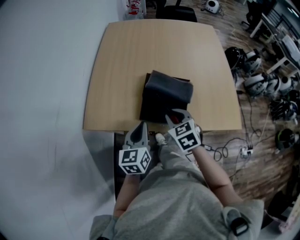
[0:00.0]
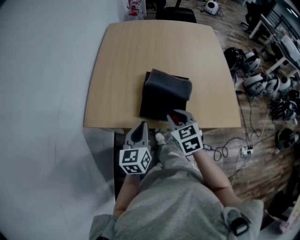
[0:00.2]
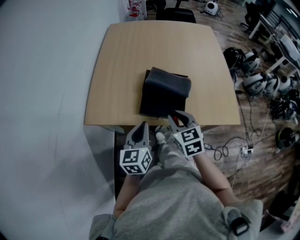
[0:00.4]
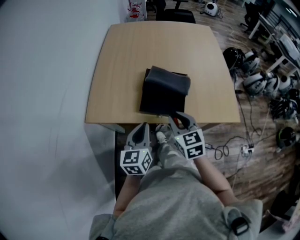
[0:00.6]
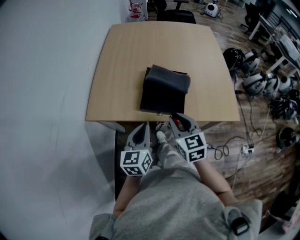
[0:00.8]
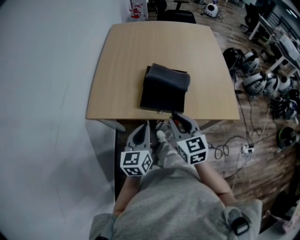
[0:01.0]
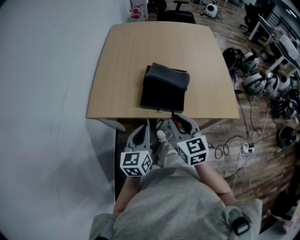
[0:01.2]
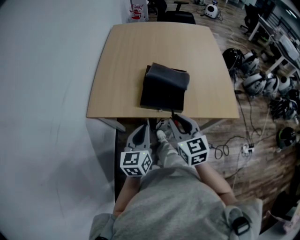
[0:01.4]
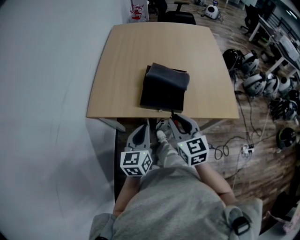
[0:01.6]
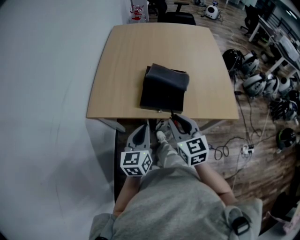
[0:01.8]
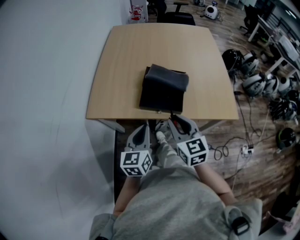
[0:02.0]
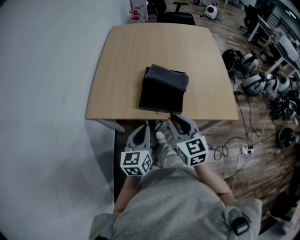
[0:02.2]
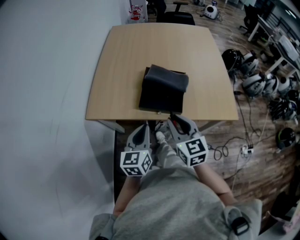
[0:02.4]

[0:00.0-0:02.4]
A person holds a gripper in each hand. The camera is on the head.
0:00.0 to 0:01.2: The left gripper heads backward, covering some 10 cm. Meanwhile the right gripper travels backward and upward by some 15 cm, and changes its angle by about 20 degrees.
0:01.2 to 0:02.4: The two grippers keep their place.

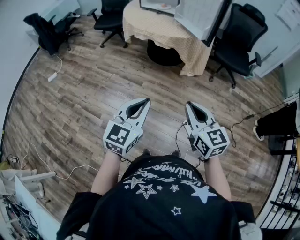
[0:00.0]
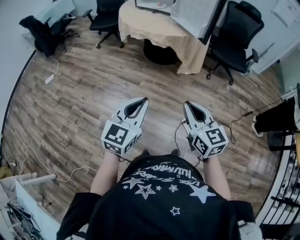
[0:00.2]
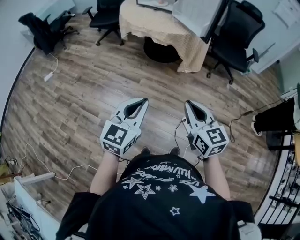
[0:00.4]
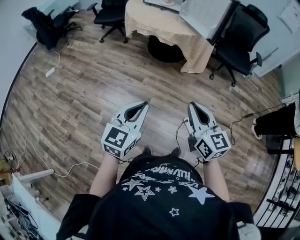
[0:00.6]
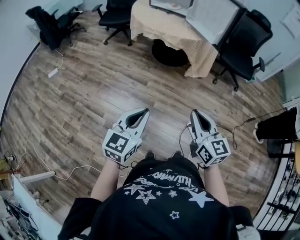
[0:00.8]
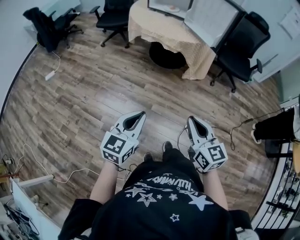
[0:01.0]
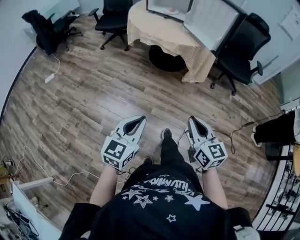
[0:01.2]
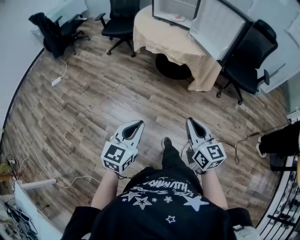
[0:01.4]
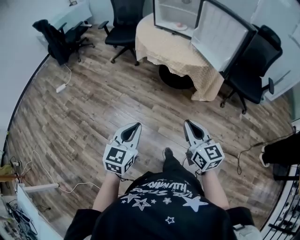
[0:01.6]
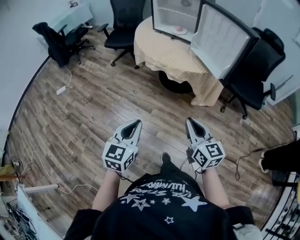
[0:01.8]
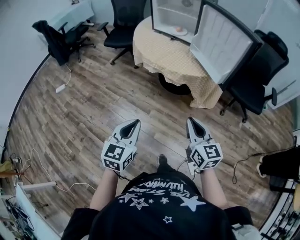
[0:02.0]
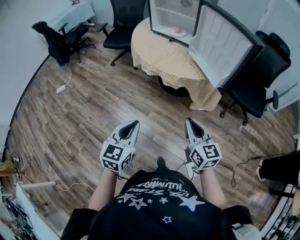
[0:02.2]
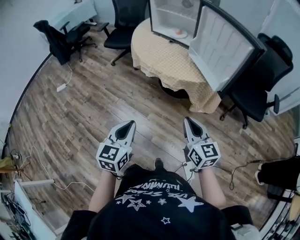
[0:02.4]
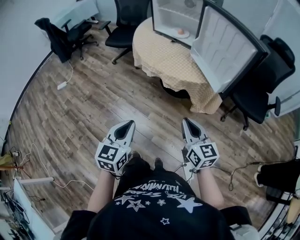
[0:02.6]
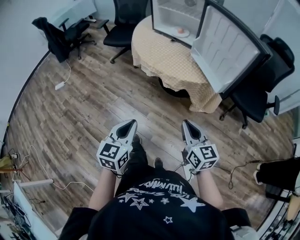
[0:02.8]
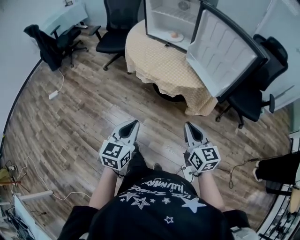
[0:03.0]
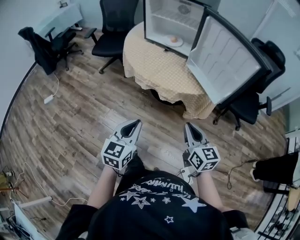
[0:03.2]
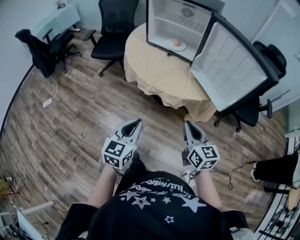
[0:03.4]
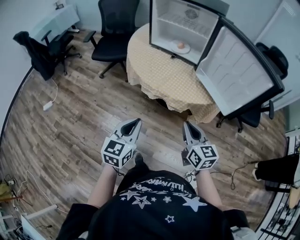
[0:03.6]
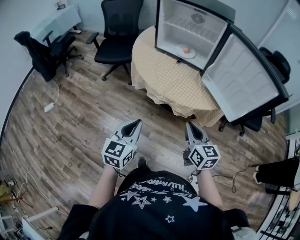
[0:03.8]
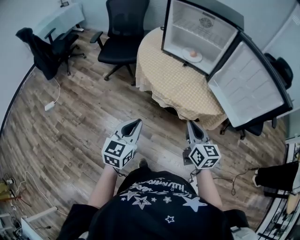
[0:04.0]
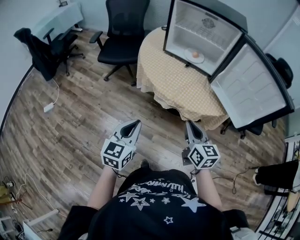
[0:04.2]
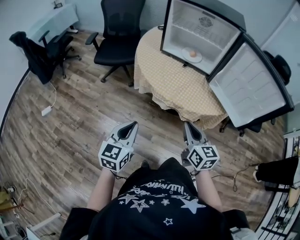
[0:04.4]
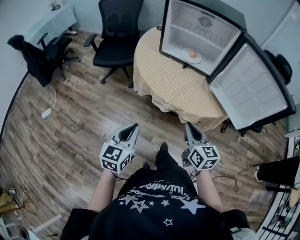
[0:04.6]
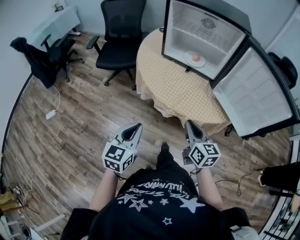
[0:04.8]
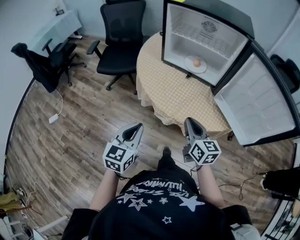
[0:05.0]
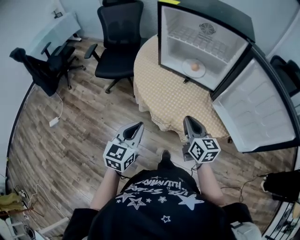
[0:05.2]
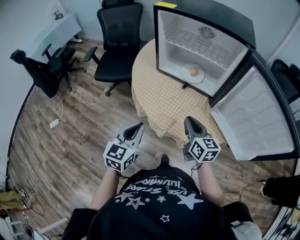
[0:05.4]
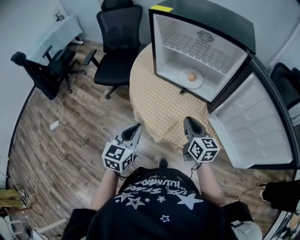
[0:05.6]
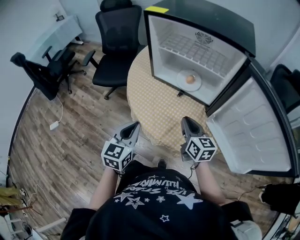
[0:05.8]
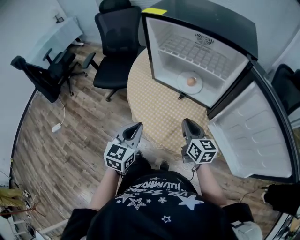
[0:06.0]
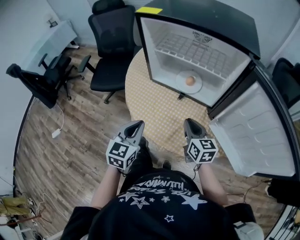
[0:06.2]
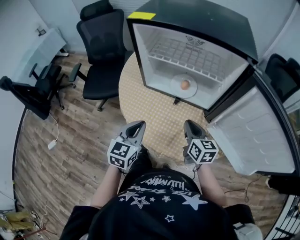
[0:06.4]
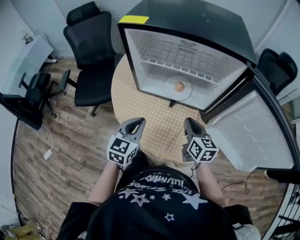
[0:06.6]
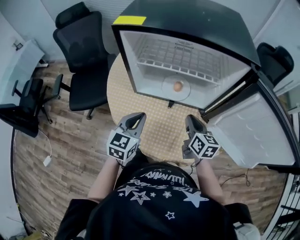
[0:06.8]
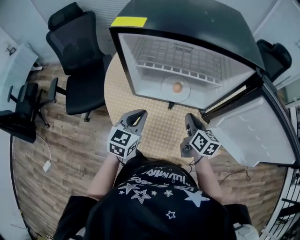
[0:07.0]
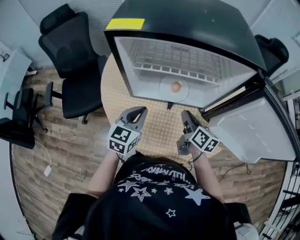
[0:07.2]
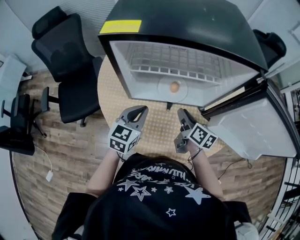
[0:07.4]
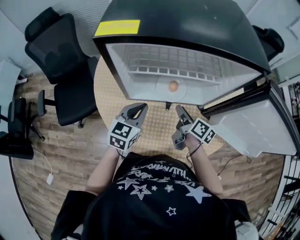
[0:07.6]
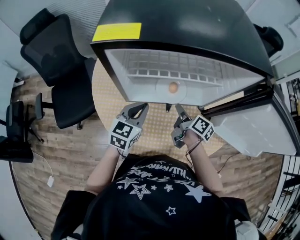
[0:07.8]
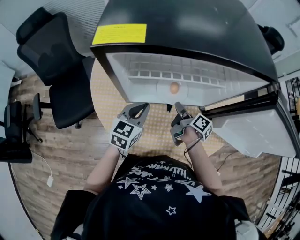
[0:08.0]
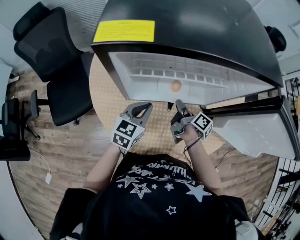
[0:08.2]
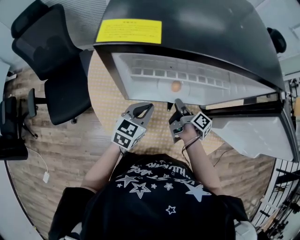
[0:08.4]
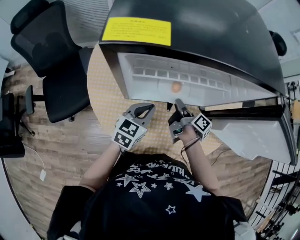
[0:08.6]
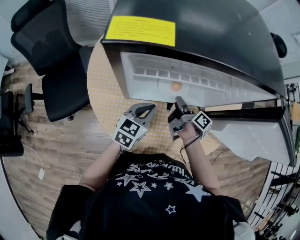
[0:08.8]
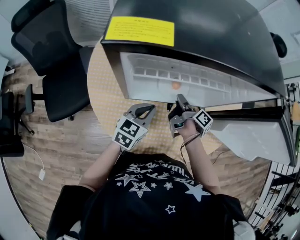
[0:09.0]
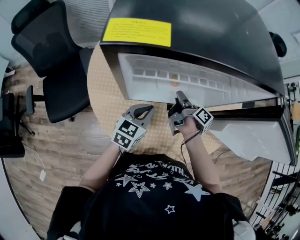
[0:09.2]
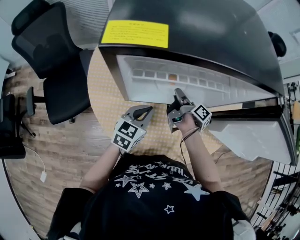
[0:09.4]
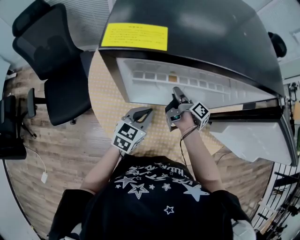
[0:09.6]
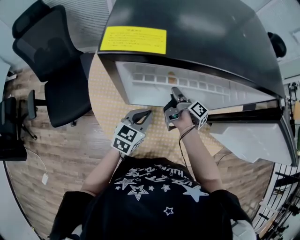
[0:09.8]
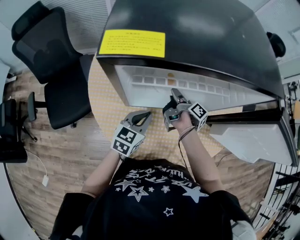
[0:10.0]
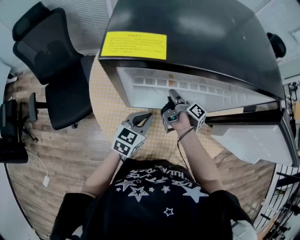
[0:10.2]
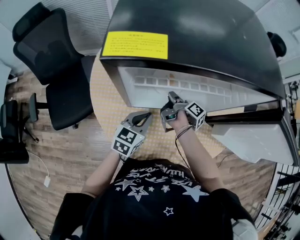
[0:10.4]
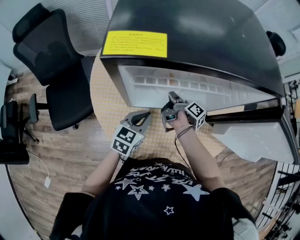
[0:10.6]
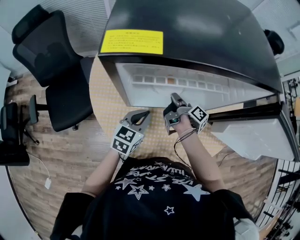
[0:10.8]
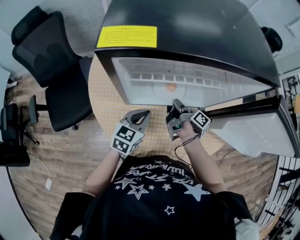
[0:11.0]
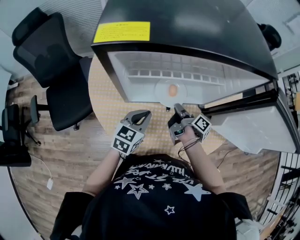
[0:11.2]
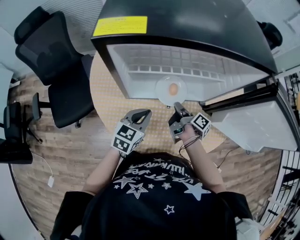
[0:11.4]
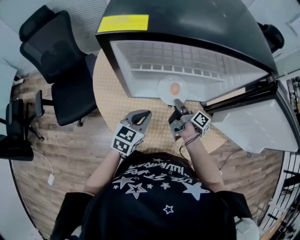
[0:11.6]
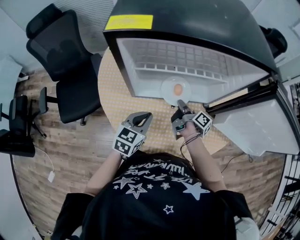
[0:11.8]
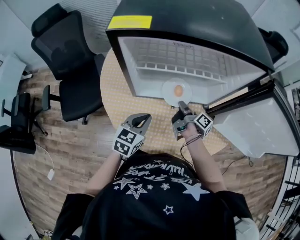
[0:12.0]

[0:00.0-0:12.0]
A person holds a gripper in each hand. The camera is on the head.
0:00.0 to 0:01.6: The two grippers go some 15 cm forward and to the left.
0:01.6 to 0:03.0: The left gripper travels forward by roughly 20 cm. The right gripper heads forward and to the right, covering about 20 cm.
0:03.0 to 0:04.4: The two grippers go some 25 cm to the left and forward.
0:04.4 to 0:06.0: The two grippers go approximately 25 cm forward.
0:06.0 to 0:07.6: The left gripper shifts by roughly 25 cm, and swivels roughly 30 degrees. Meanwhile the right gripper ends up roughly 15 cm from where it was, rotates around the line of its fingers by about 40 degrees, clockwise from behind, and opens up.
0:07.6 to 0:09.0: The left gripper is displaced downward by about 5 cm; the right gripper goes some 5 cm forward, and rotates roughly 30 degrees.
0:09.0 to 0:10.4: The right gripper heads to the left, covering roughly 5 cm.
0:10.4 to 0:12.0: The left gripper is displaced backward by about 5 cm. Meanwhile the right gripper is displaced backward and to the right by some 10 cm.

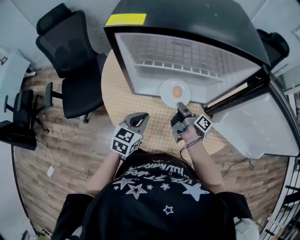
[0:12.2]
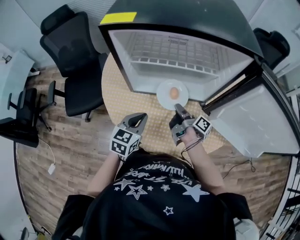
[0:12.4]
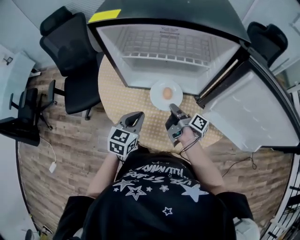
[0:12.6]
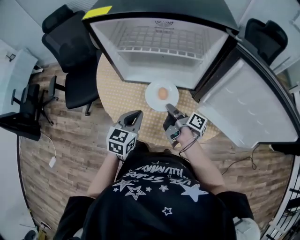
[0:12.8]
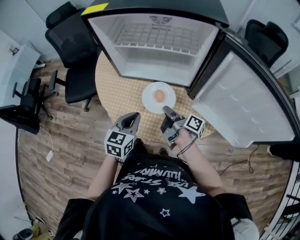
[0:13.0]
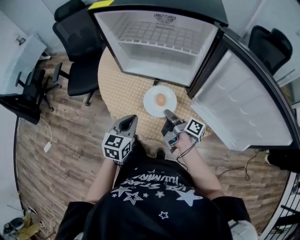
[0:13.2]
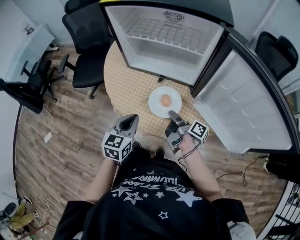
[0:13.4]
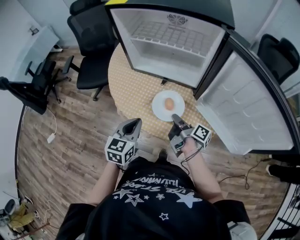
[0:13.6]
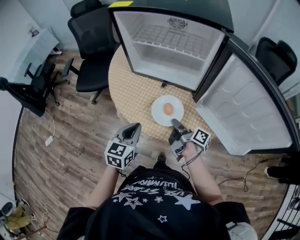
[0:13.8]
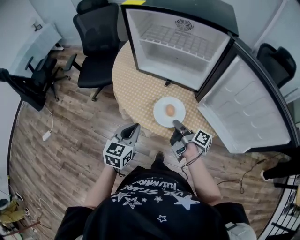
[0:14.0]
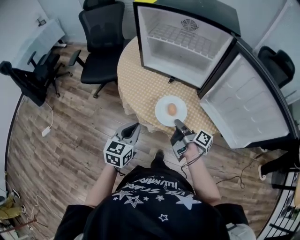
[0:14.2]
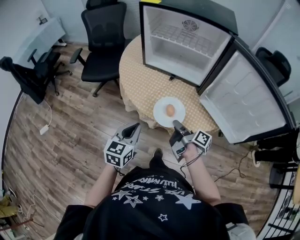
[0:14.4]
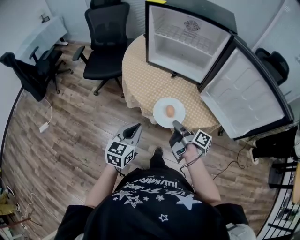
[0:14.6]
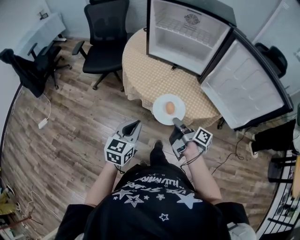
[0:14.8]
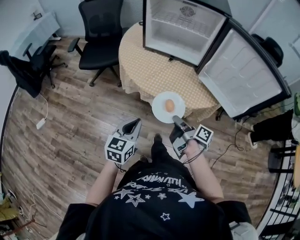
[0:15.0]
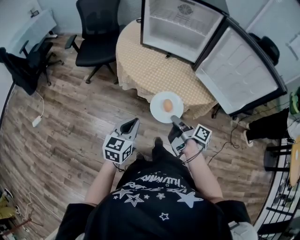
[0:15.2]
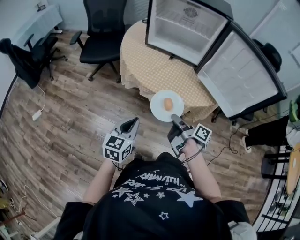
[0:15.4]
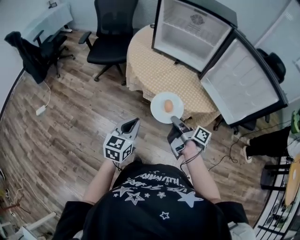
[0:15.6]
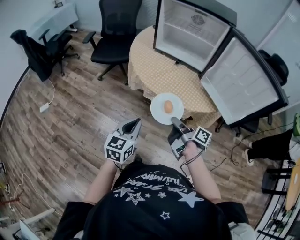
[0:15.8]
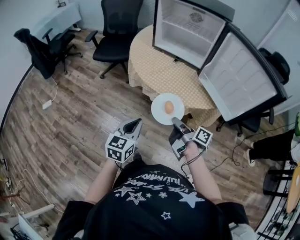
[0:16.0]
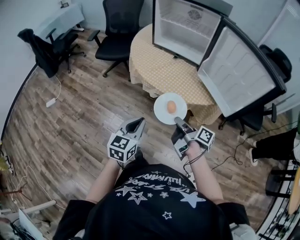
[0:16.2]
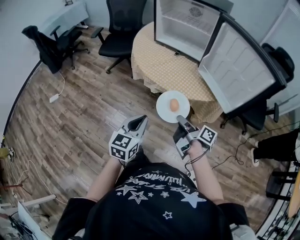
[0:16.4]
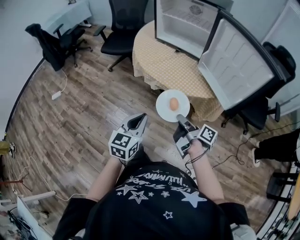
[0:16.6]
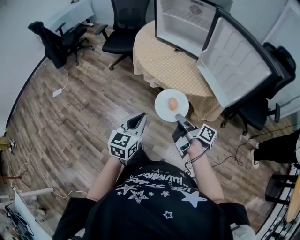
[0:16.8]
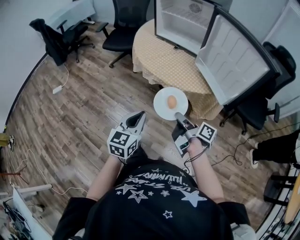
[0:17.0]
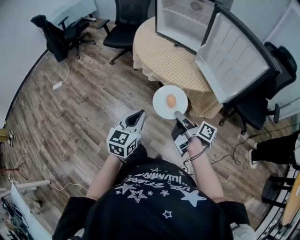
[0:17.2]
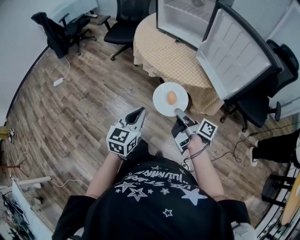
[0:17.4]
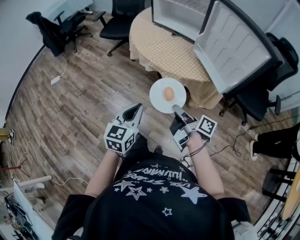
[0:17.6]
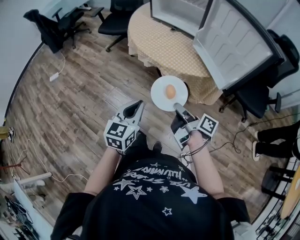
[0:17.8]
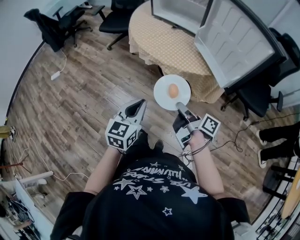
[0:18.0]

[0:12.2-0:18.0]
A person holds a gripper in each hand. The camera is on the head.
0:12.2 to 0:13.6: The two grippers go about 20 cm backward. The right gripper changes its angle by about 20 degrees; the left gripper changes its angle by approximately 20 degrees.
0:13.6 to 0:15.0: Both grippers travel together backward, approximately 20 cm.
0:15.0 to 0:16.6: The grippers both shift backward and to the right by roughly 15 cm.
0:16.6 to 0:18.0: The right gripper shifts some 5 cm backward; the left gripper moves backward and to the right, some 5 cm.

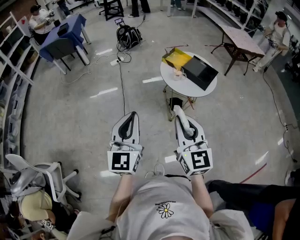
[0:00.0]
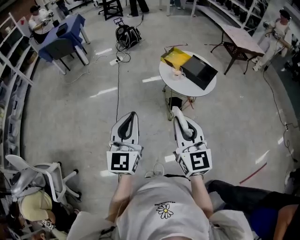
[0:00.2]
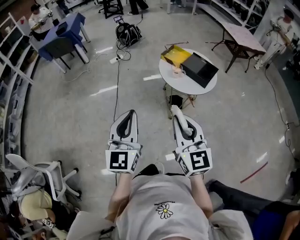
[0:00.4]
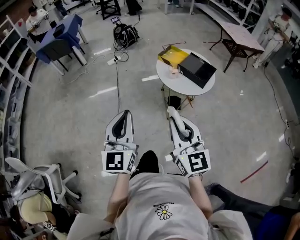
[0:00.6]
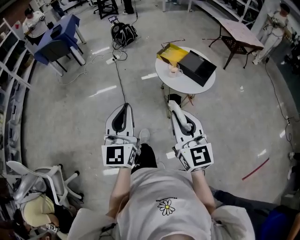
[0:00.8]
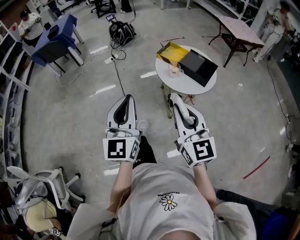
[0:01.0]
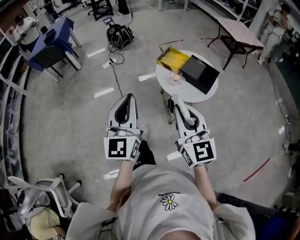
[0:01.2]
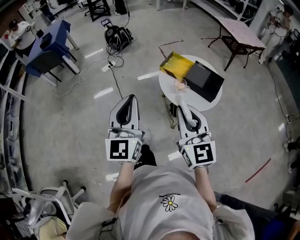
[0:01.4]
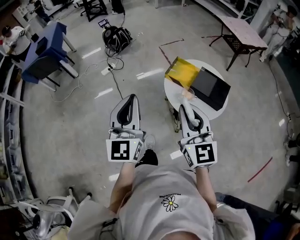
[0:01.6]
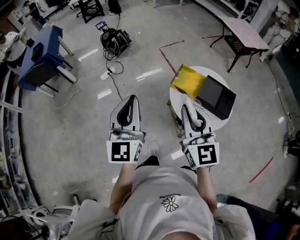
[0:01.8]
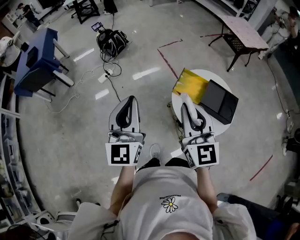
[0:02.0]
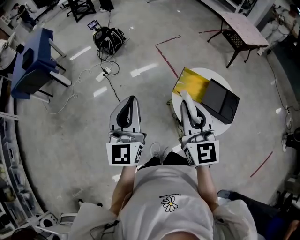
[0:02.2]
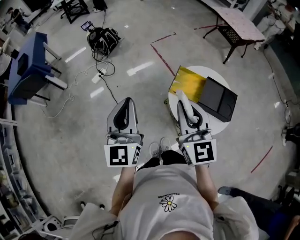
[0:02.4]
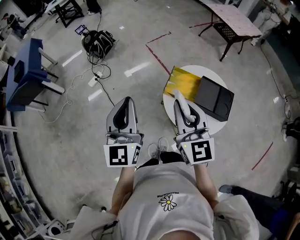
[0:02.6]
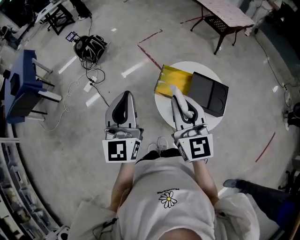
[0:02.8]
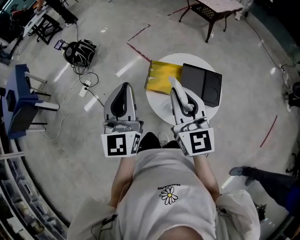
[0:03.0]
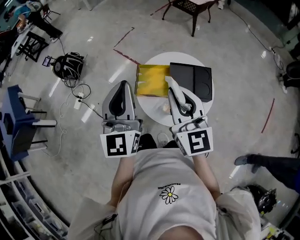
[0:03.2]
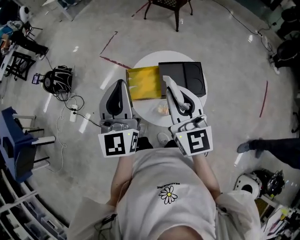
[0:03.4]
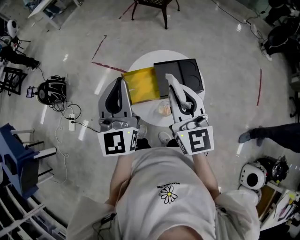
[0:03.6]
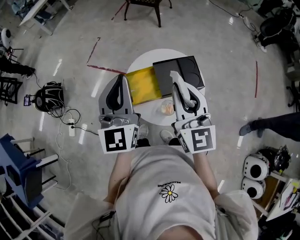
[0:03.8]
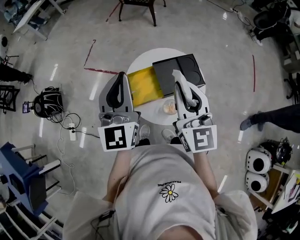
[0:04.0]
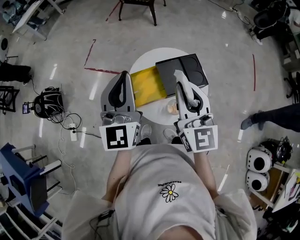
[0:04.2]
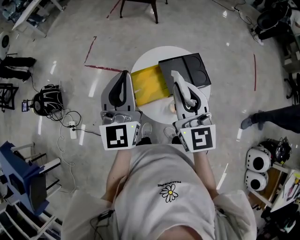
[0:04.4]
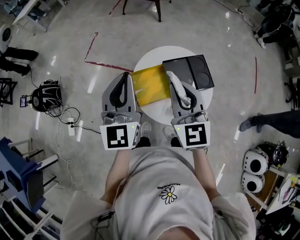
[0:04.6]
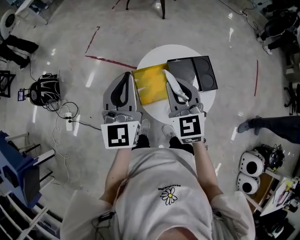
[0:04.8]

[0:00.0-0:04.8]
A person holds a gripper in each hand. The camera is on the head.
0:00.0 to 0:01.6: The two grippers go approximately 30 cm forward.
0:01.6 to 0:03.2: The left gripper shifts by some 30 cm, and changes its angle by approximately 30 degrees. The right gripper ends up roughly 20 cm from where it was, and changes its angle by roughly 30 degrees.
0:03.2 to 0:04.8: The right gripper travels forward, downward and to the left by about 15 cm, and rotates some 30 degrees; the left gripper shifts about 15 cm forward and downward, and rotates approximately 20 degrees.
